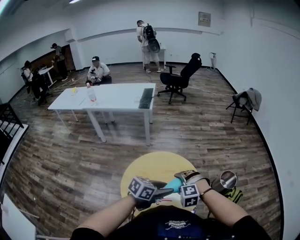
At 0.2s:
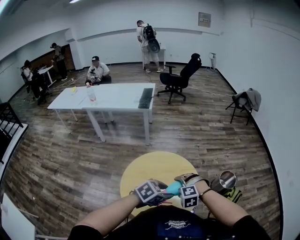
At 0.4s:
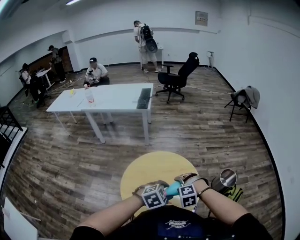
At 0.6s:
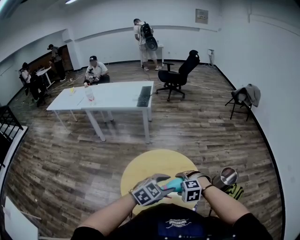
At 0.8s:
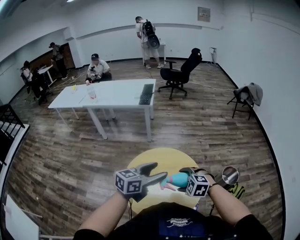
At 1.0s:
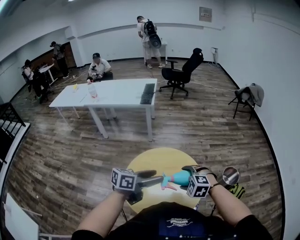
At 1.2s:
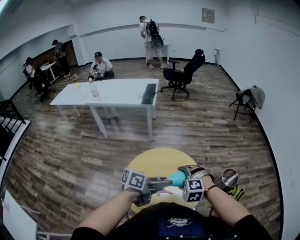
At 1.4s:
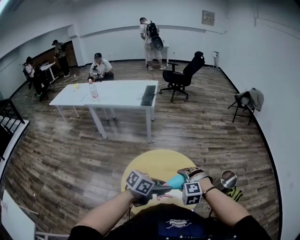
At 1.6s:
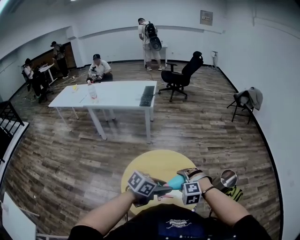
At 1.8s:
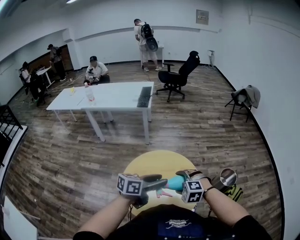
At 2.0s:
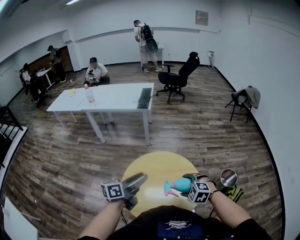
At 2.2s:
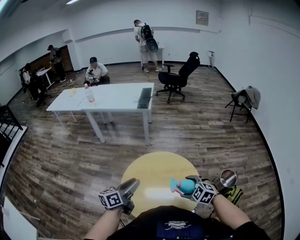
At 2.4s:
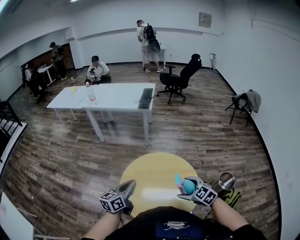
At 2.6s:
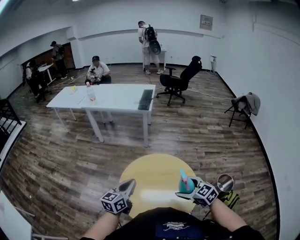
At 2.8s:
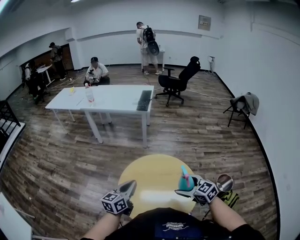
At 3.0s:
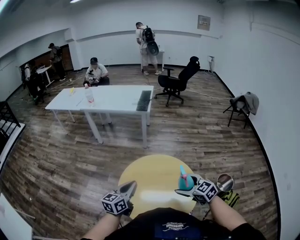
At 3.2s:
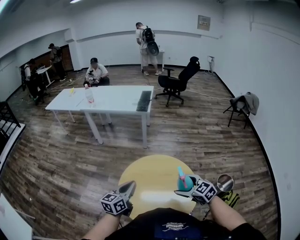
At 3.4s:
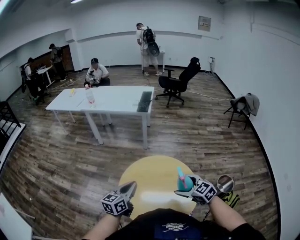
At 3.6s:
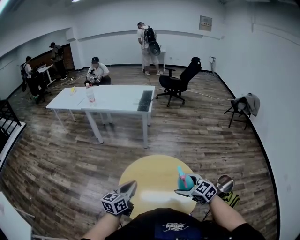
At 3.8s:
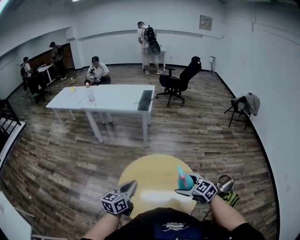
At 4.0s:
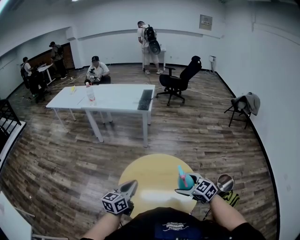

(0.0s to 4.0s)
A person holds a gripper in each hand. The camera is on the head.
0.0s - 1.4s: The left gripper reaches approximately 10 cm upward, then returns.
1.4s - 2.6s: The right gripper rotates around the line of its fingers by some 50 degrees, clockwise from behind. The left gripper shifts by some 15 cm, turns by some 50 degrees, and closes up.
2.6s - 4.0s: The grippers stay close to where they were, moving slightly.

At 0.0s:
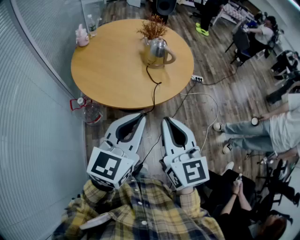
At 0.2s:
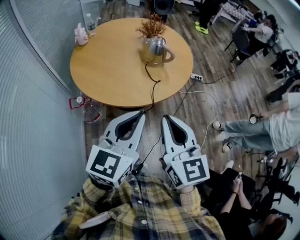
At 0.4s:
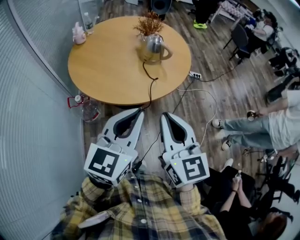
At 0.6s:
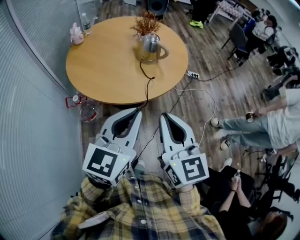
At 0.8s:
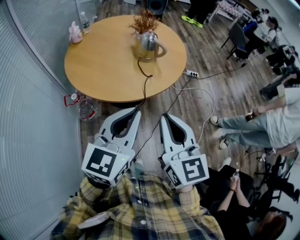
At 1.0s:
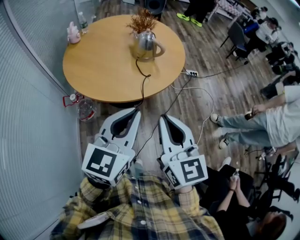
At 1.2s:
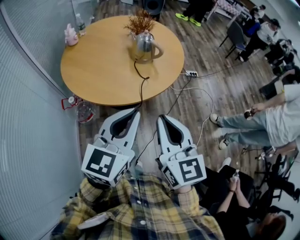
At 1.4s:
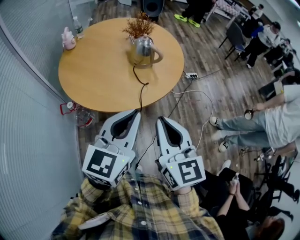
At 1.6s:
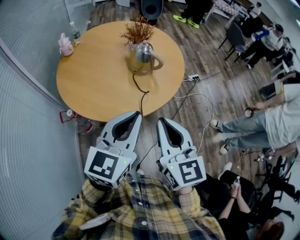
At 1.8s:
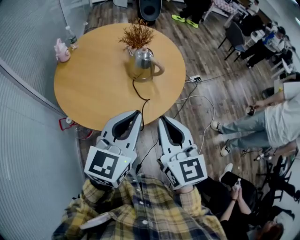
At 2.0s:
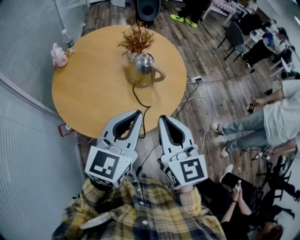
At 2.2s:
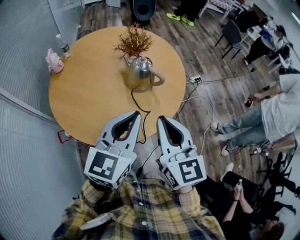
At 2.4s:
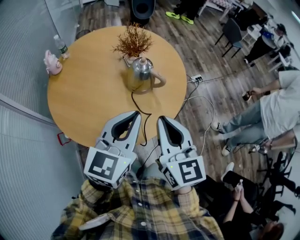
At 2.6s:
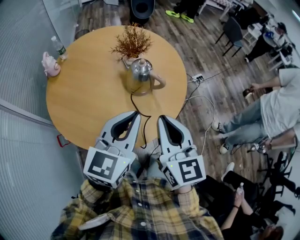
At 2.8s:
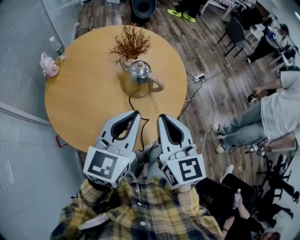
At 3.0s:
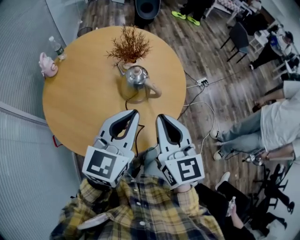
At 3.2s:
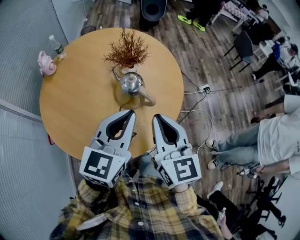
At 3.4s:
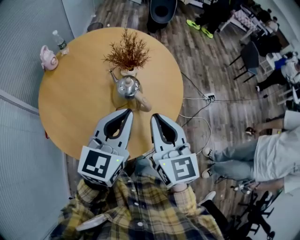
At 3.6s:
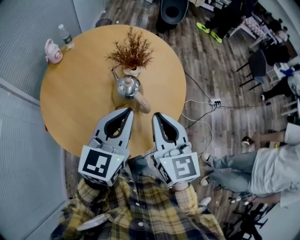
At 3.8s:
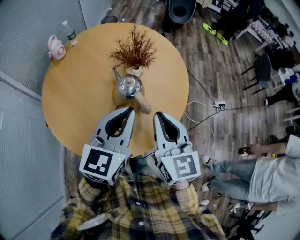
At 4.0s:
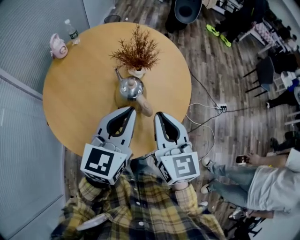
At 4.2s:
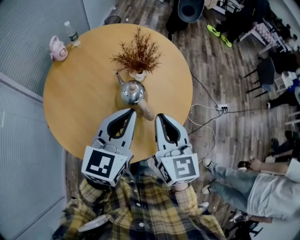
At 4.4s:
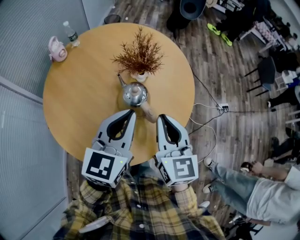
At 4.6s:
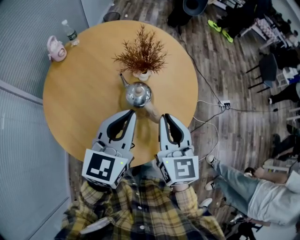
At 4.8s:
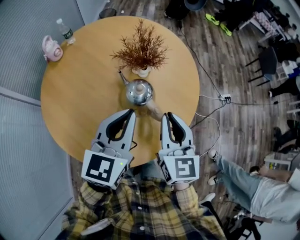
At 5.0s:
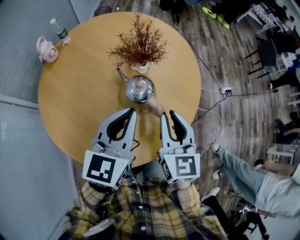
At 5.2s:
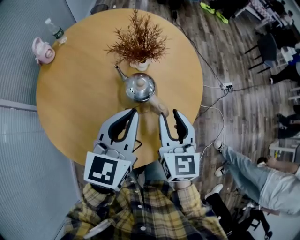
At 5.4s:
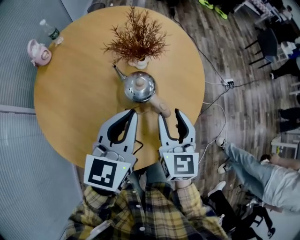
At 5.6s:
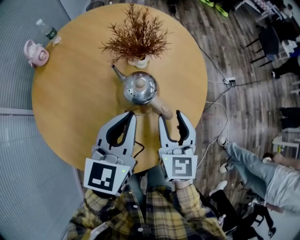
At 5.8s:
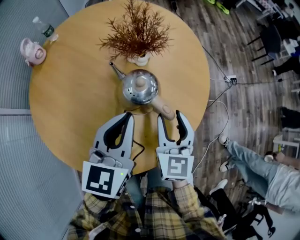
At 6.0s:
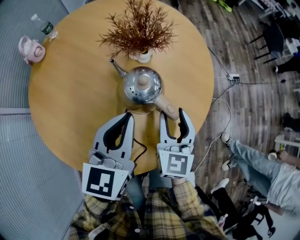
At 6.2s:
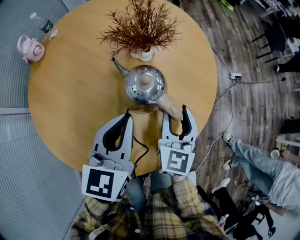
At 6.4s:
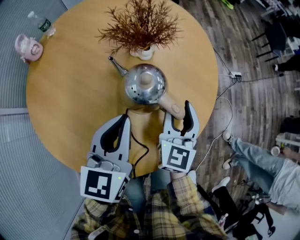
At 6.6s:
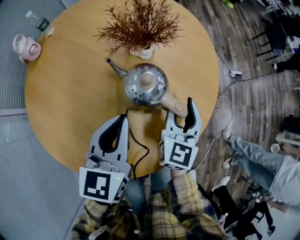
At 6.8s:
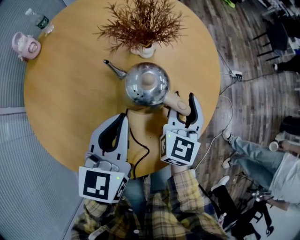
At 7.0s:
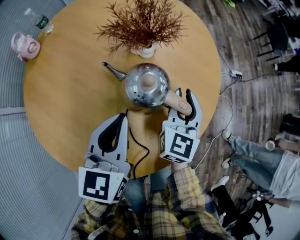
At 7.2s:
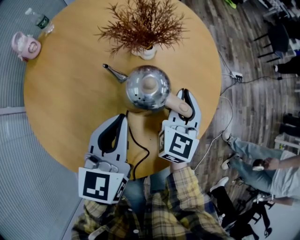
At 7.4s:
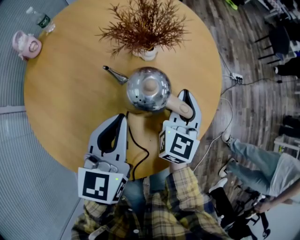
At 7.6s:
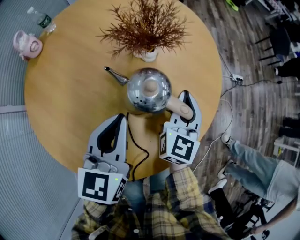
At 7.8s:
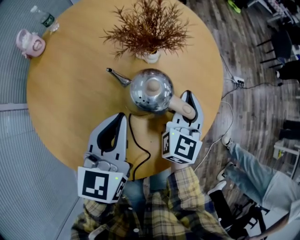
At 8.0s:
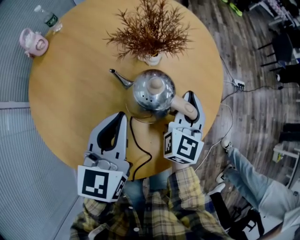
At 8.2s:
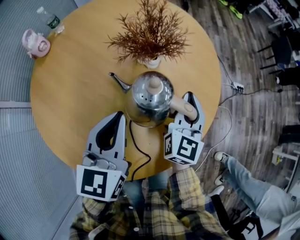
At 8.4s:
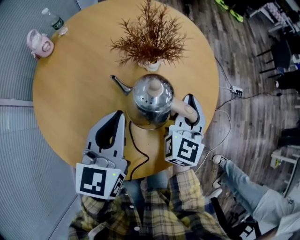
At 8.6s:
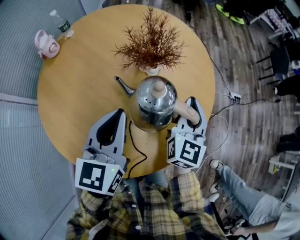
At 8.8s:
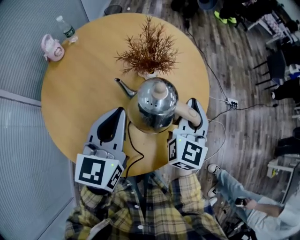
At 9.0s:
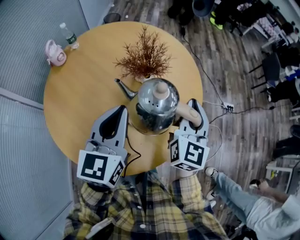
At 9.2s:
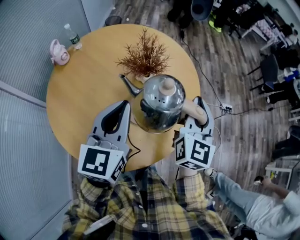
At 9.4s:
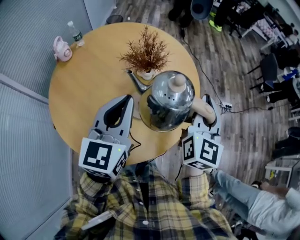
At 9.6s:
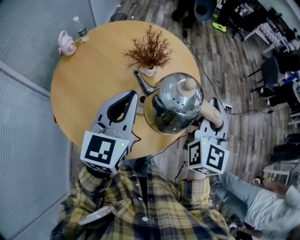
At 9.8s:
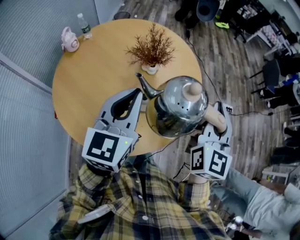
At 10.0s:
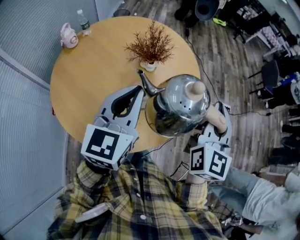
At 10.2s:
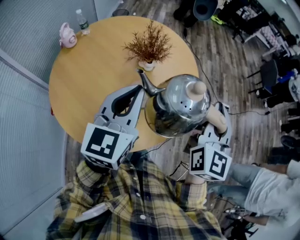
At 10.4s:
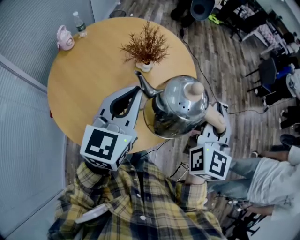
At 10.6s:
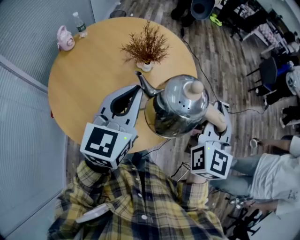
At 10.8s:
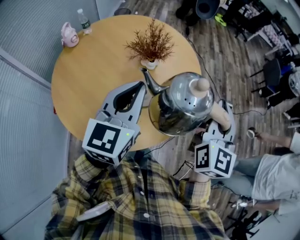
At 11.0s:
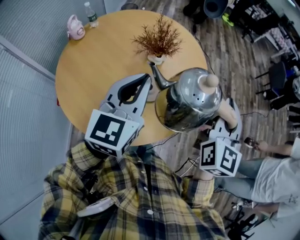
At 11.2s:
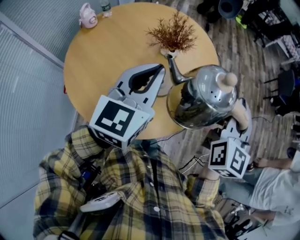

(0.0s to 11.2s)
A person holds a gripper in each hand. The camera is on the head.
0.0s - 1.6s: The grippers both shift forward by roughly 10 cm.
1.6s - 3.2s: Both grippers move forward, about 25 cm.
3.2s - 4.8s: The grippers both shift forward and downward by about 10 cm.
4.8s - 6.4s: The grippers both shift downward by about 15 cm. The right gripper swivels roughly 20 degrees, and opens up.
6.4s - 8.0s: The right gripper shifts some 5 cm forward, and closes up.
8.0s - 9.6s: The two grippers go some 20 cm upward.
9.6s - 11.2s: There are only small adjustments of the grippers.

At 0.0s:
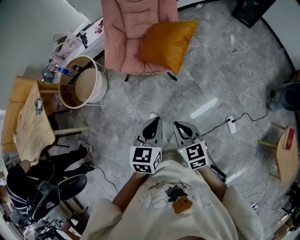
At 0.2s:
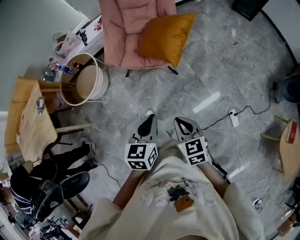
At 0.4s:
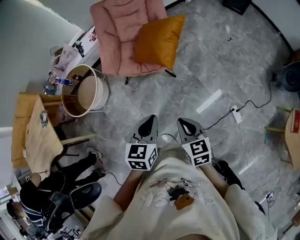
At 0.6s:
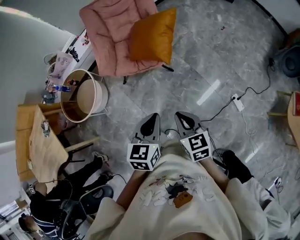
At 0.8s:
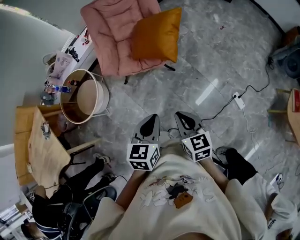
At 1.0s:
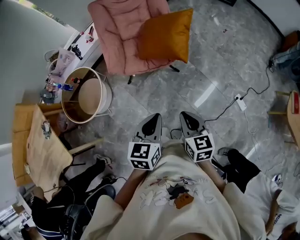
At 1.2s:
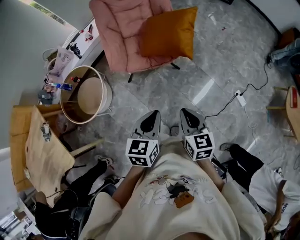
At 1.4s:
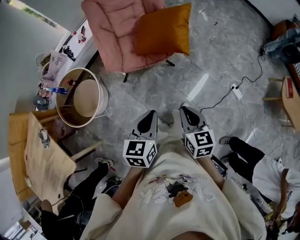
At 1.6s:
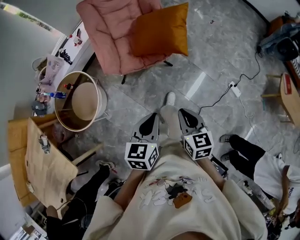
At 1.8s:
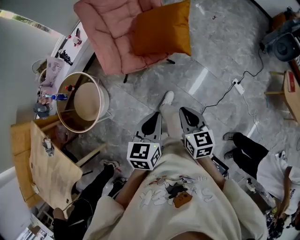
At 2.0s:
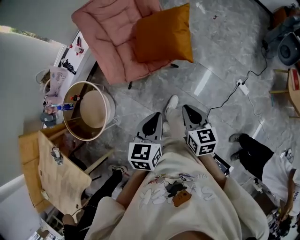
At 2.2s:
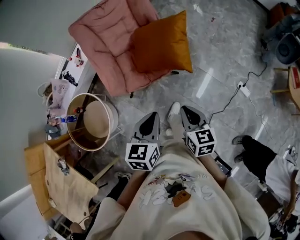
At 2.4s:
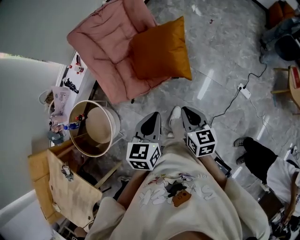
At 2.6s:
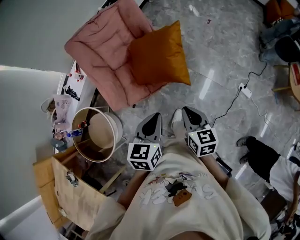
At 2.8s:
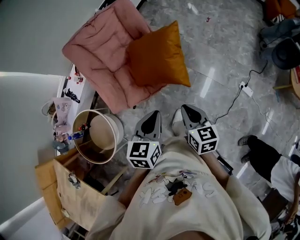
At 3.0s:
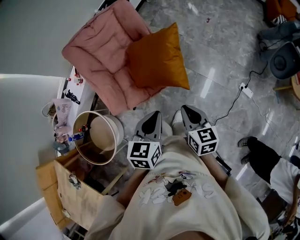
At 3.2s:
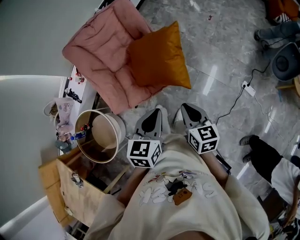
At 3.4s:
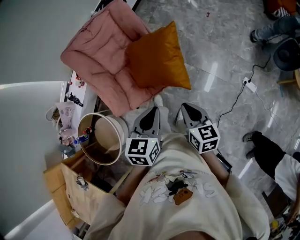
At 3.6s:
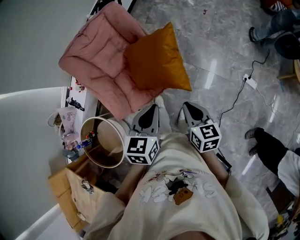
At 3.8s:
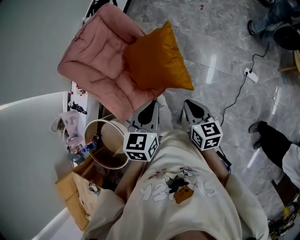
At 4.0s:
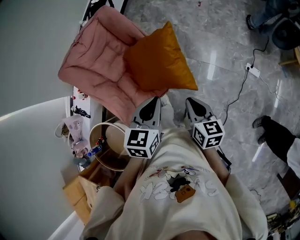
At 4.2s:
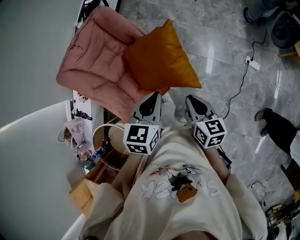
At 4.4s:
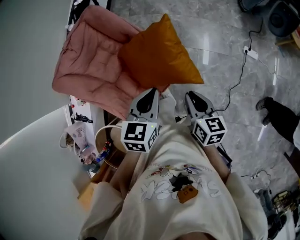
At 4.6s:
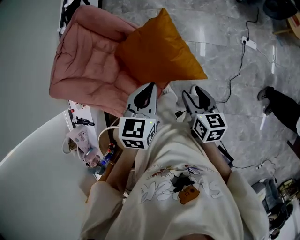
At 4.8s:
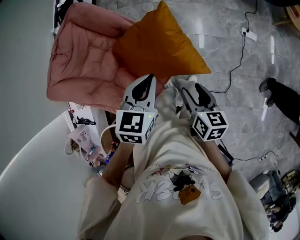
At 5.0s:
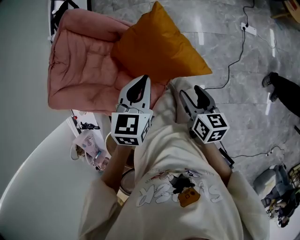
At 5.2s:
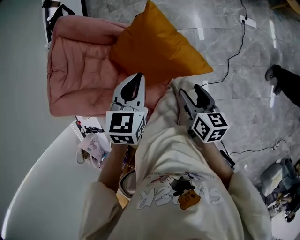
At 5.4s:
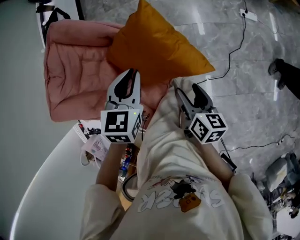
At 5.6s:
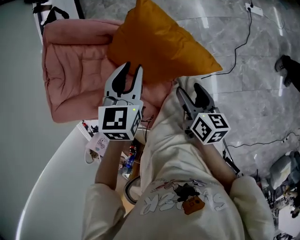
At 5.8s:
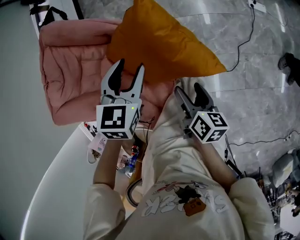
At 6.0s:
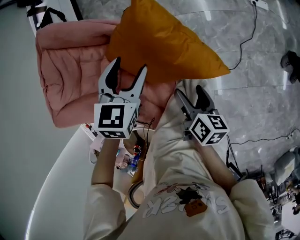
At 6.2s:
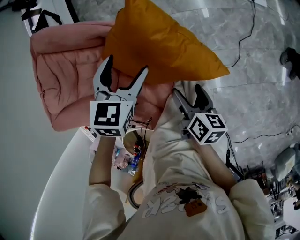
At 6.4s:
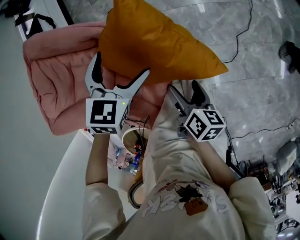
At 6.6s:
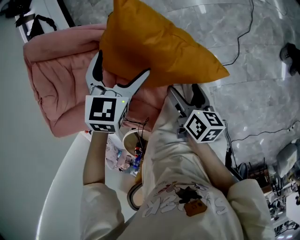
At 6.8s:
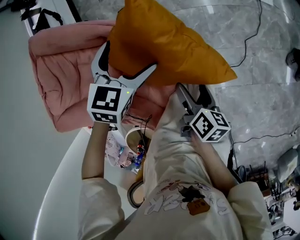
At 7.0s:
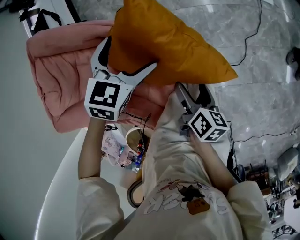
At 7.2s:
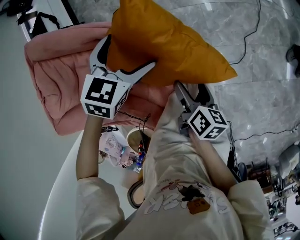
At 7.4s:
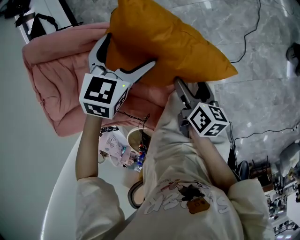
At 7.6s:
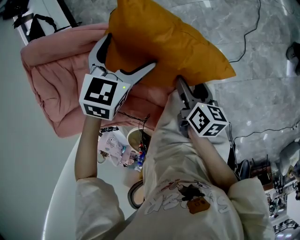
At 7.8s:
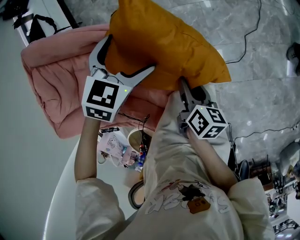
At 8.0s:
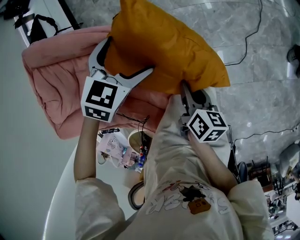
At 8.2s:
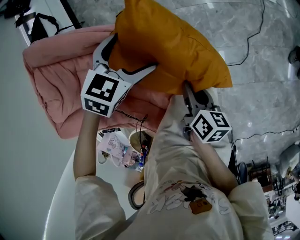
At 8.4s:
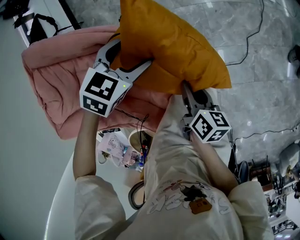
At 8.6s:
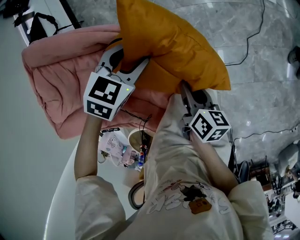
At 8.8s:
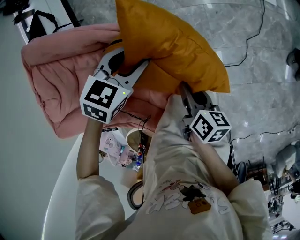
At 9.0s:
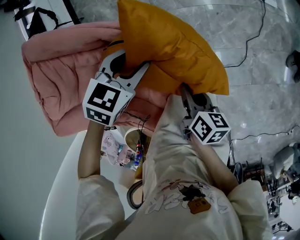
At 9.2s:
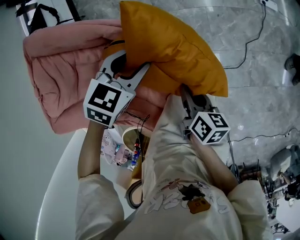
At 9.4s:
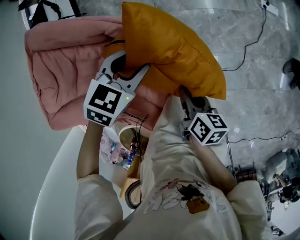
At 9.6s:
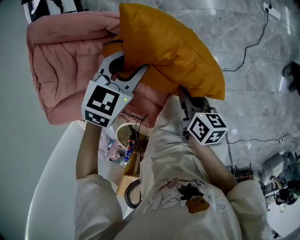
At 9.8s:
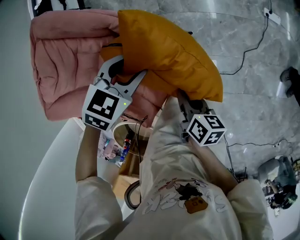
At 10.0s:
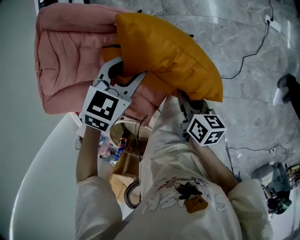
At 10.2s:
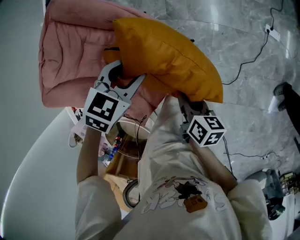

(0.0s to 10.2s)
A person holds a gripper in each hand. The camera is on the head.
0.0s - 1.4s: Both grippers travel together to the left, about 20 cm. The right gripper turns by roughly 30 degrees.
1.4s - 3.0s: Both grippers travel together forward, roughly 25 cm.
3.0s - 4.4s: The right gripper shifts some 15 cm forward and to the left, and swivels about 30 degrees. Meanwhile the left gripper heads forward, covering some 20 cm, and turns by about 20 degrees.
4.4s - 5.8s: The right gripper goes roughly 15 cm downward, rotates roughly 40 degrees, and opens up. Meanwhile the left gripper shifts about 20 cm forward and downward, and turns by about 20 degrees.
5.8s - 7.2s: The right gripper goes about 10 cm downward, while the left gripper is displaced downward and forward by roughly 10 cm, swivels approximately 20 degrees, and opens up.
7.2s - 8.8s: The right gripper closes its fingers. The left gripper closes up.
8.8s - 10.2s: The right gripper travels upward by approximately 5 cm, and swivels approximately 20 degrees, while the left gripper travels upward and backward by roughly 10 cm.
